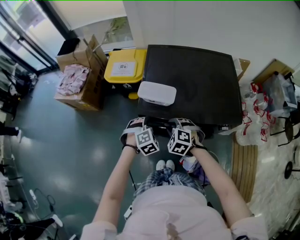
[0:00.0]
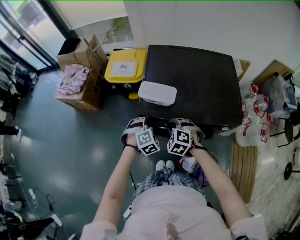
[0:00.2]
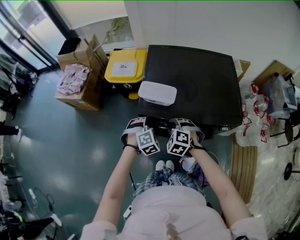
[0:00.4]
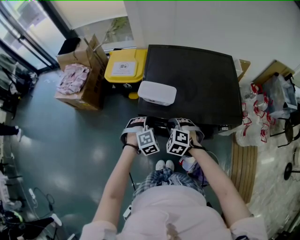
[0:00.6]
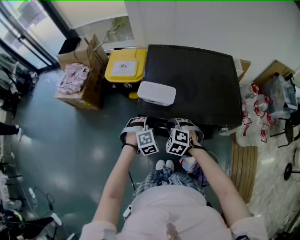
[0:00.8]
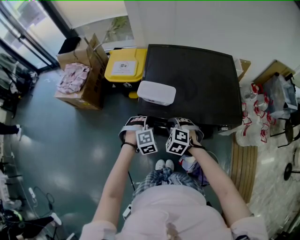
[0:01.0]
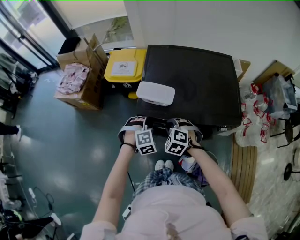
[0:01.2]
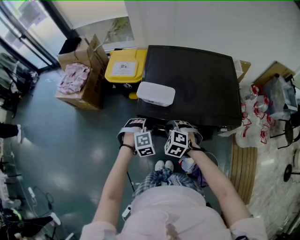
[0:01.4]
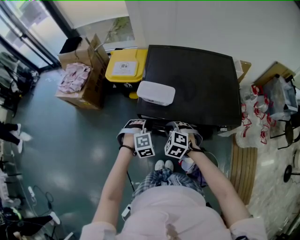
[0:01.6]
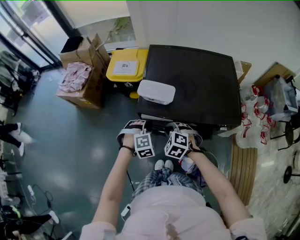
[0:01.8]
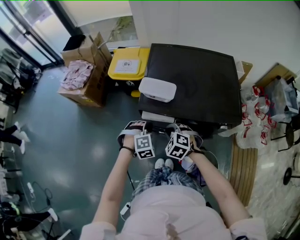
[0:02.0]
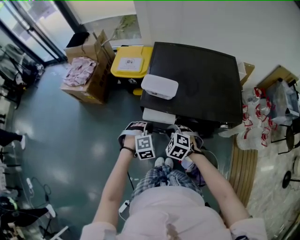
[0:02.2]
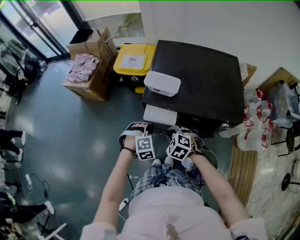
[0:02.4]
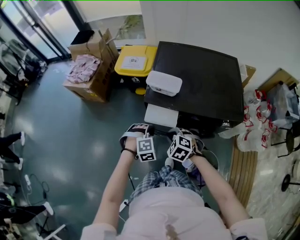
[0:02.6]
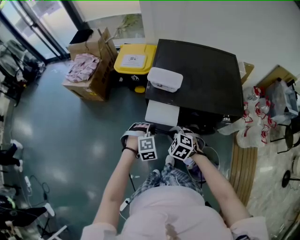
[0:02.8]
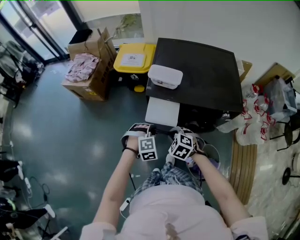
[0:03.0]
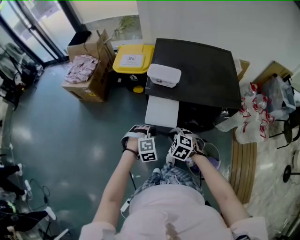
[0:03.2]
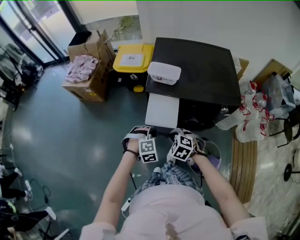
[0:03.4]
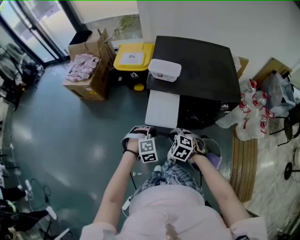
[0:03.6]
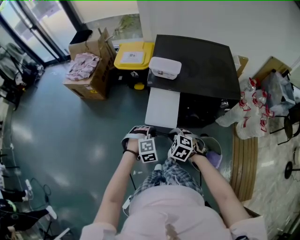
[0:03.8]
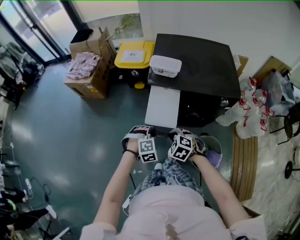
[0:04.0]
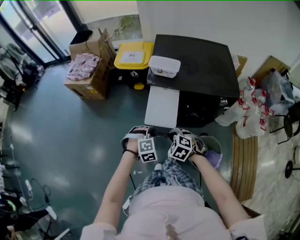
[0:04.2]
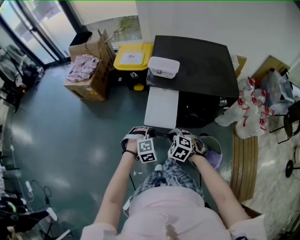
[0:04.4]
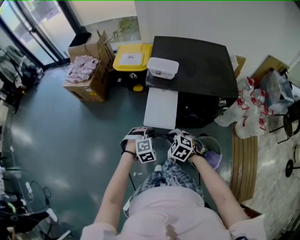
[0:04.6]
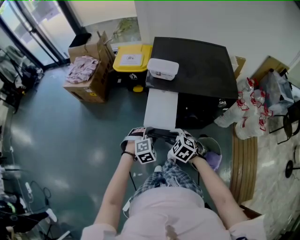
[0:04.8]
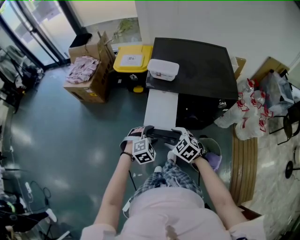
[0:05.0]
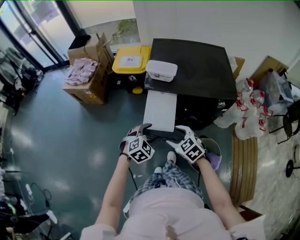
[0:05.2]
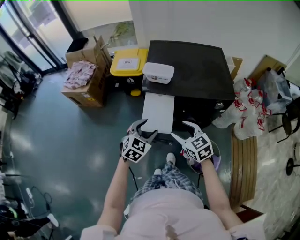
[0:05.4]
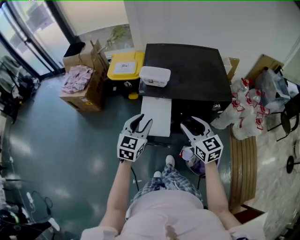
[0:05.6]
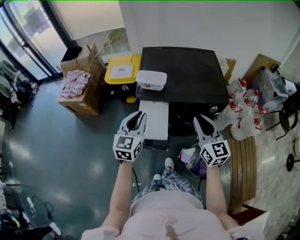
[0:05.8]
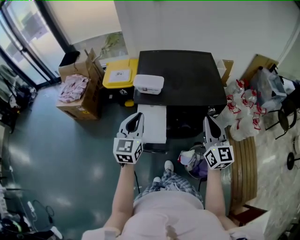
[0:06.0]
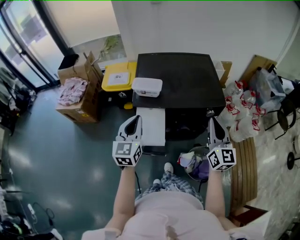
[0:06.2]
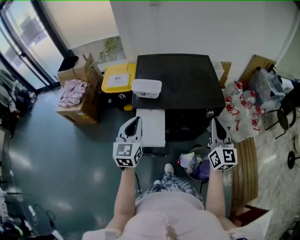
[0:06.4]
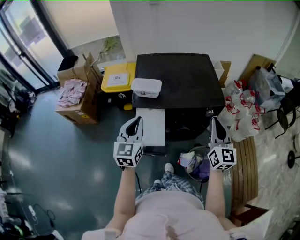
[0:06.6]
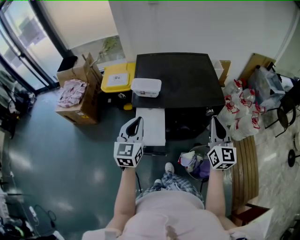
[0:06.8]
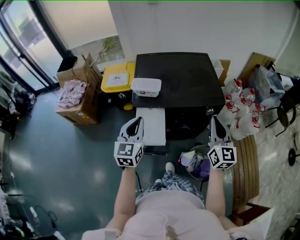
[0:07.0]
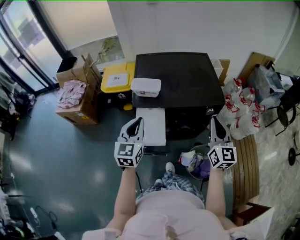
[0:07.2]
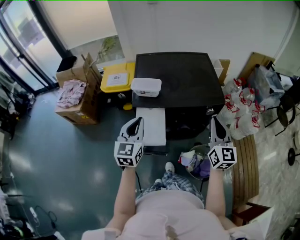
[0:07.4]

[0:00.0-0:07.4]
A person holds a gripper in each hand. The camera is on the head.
0:00.0 to 0:01.4: The grippers move only a little.
0:01.4 to 0:03.0: Both grippers move backward and to the left, approximately 15 cm.
0:03.0 to 0:04.4: The grippers both shift backward by some 10 cm.
0:04.4 to 0:06.0: The left gripper moves upward and forward, some 25 cm, tips its fingers upward by some 50 degrees, and opens, then closes once more. The right gripper moves upward and to the right, roughly 35 cm, points its fingers approximately 60 degrees further upward, and opens, then closes again.
0:06.0 to 0:07.4: There are only small adjustments of the grippers.

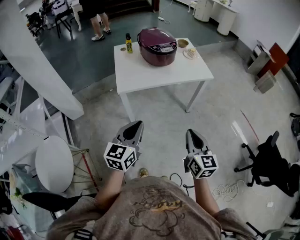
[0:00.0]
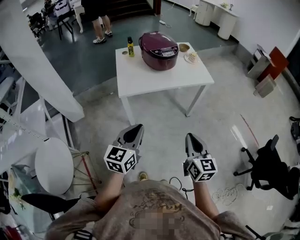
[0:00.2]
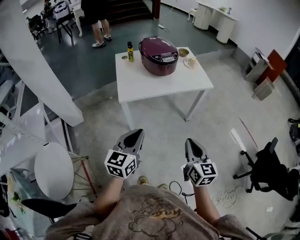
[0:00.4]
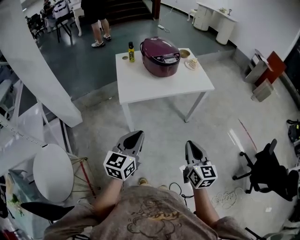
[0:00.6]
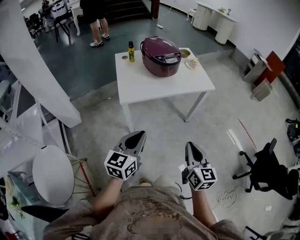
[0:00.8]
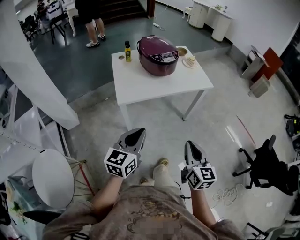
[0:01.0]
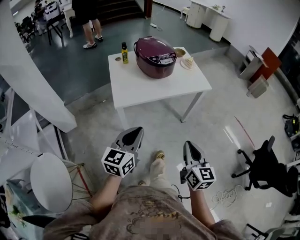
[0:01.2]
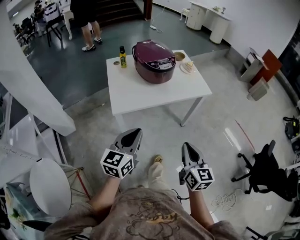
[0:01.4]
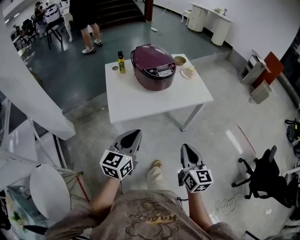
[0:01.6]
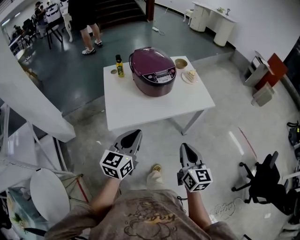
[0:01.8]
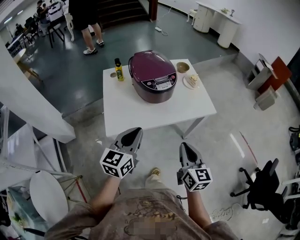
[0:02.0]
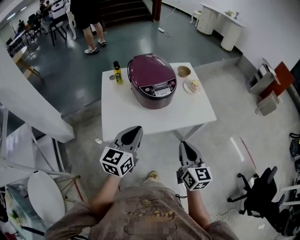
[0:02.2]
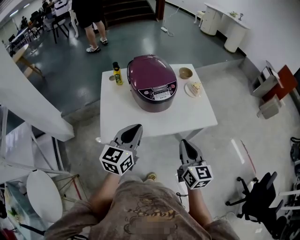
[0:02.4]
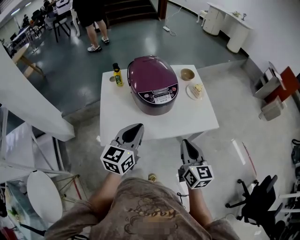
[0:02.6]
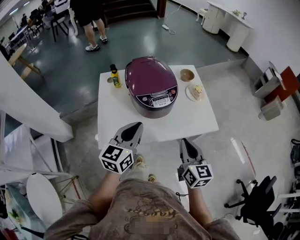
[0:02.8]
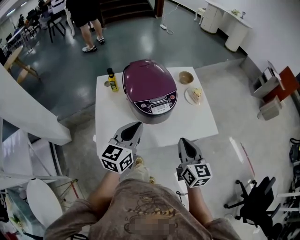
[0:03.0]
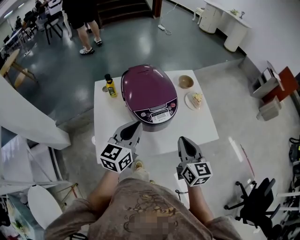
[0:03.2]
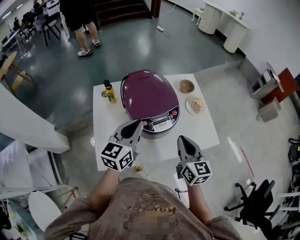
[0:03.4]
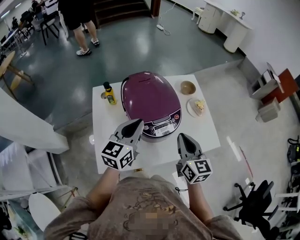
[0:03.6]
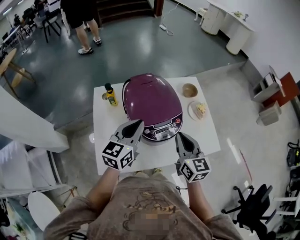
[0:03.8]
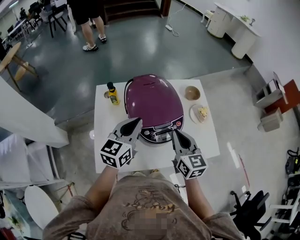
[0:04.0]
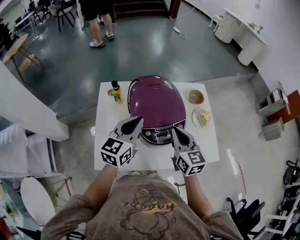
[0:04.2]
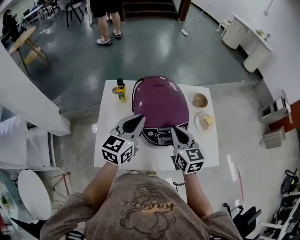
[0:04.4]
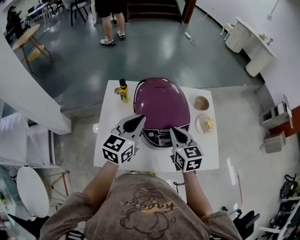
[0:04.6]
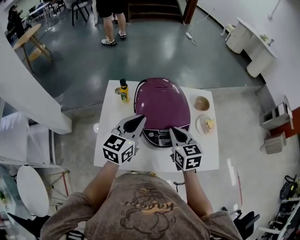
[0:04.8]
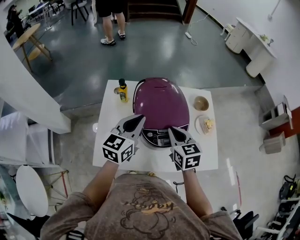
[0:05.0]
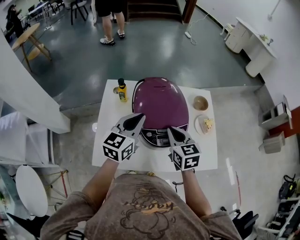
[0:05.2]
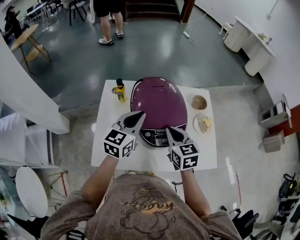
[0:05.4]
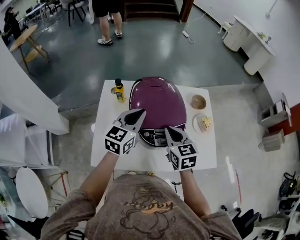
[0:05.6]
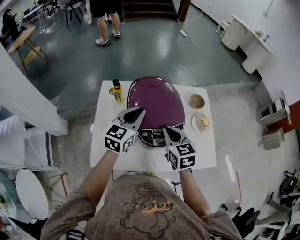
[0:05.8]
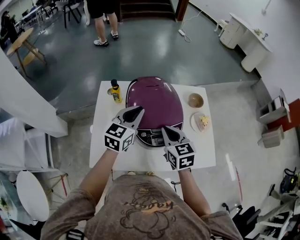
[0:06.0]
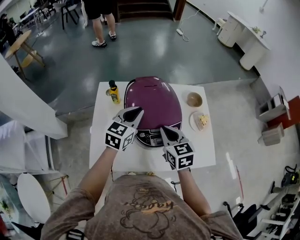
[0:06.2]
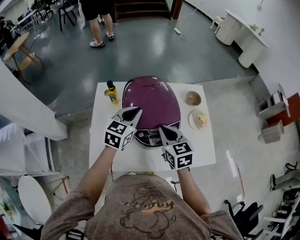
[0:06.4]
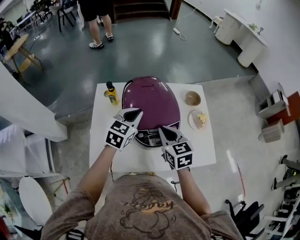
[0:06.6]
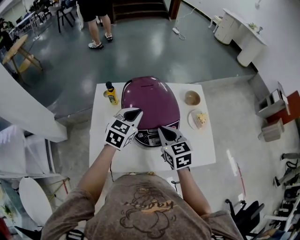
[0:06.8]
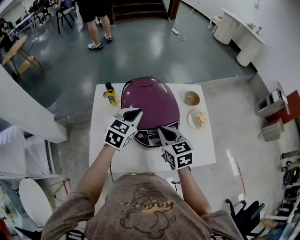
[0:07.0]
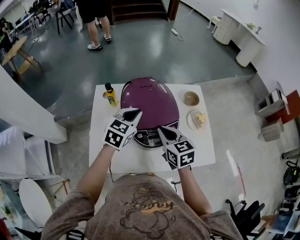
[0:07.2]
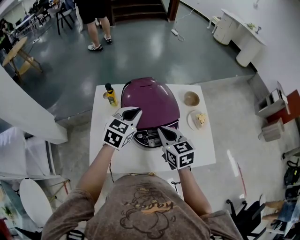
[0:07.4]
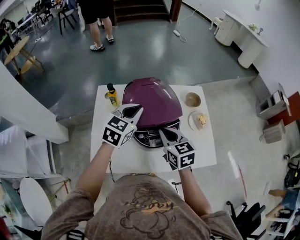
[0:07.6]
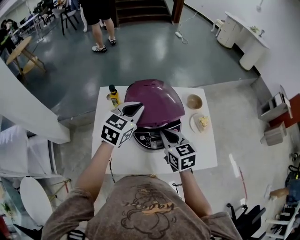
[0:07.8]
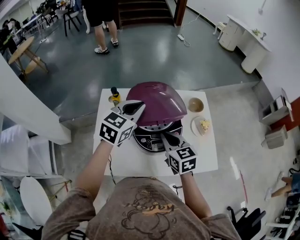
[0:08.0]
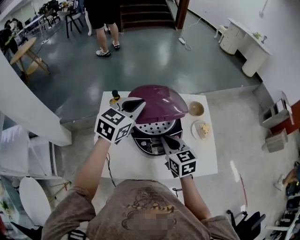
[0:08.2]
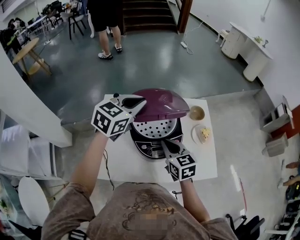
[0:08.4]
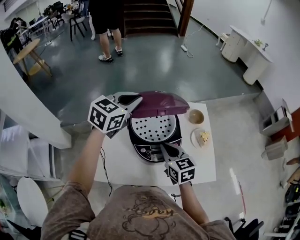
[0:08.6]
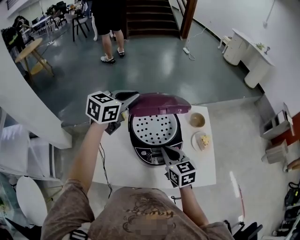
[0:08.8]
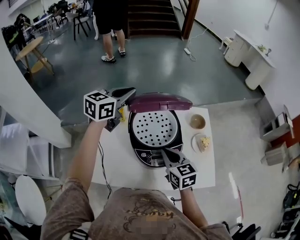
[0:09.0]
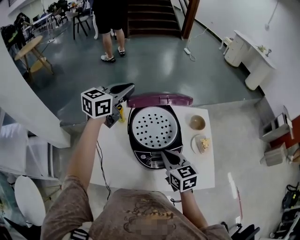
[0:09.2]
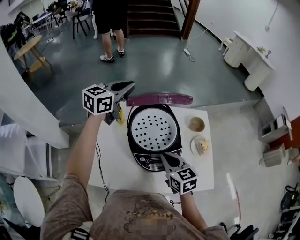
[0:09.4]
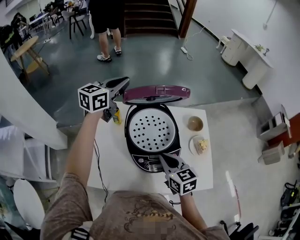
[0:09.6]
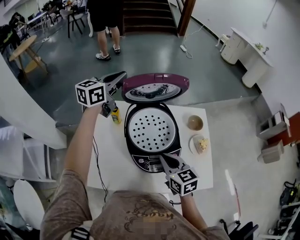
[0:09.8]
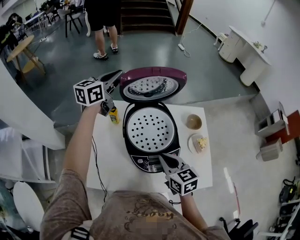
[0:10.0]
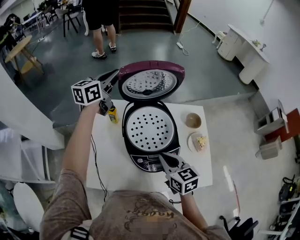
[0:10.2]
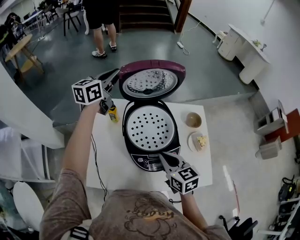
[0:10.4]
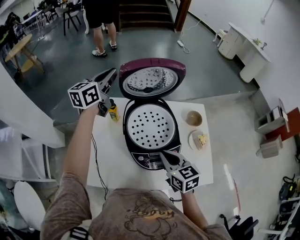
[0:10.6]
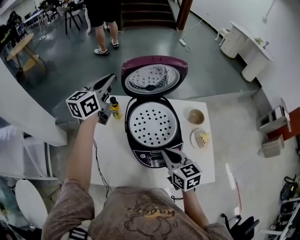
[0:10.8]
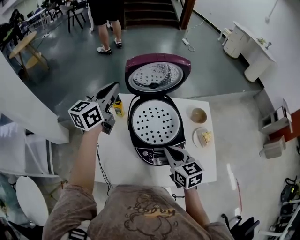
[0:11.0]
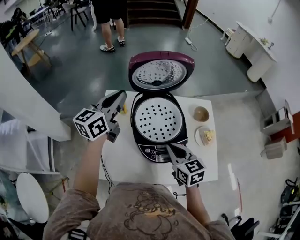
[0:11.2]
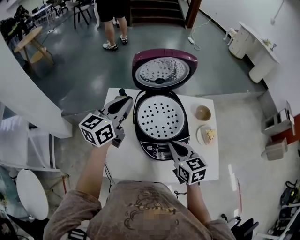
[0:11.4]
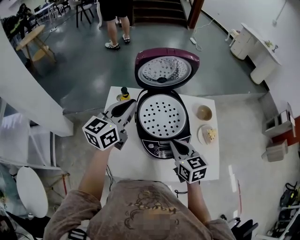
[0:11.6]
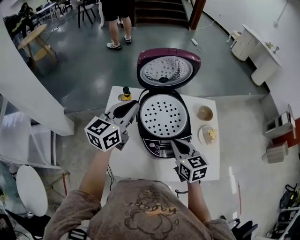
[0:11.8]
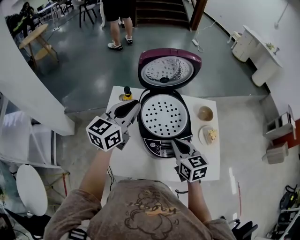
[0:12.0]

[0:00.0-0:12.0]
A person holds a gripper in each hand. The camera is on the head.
0:00.0 to 0:01.6: Both grippers travel together forward, about 15 cm.
0:01.6 to 0:03.0: The two grippers go roughly 30 cm forward.
0:03.0 to 0:04.4: The left gripper goes about 15 cm forward, while the right gripper moves forward and to the left, roughly 20 cm.
0:04.4 to 0:06.0: The left gripper moves roughly 5 cm.
0:06.0 to 0:07.6: The grippers make only small movements.
0:07.6 to 0:09.0: The left gripper is displaced upward, forward and to the left by roughly 15 cm.
0:09.0 to 0:10.4: The left gripper goes roughly 10 cm forward and to the left.
0:10.4 to 0:12.0: The left gripper heads backward, covering some 20 cm.

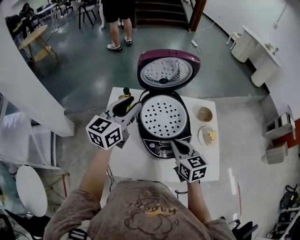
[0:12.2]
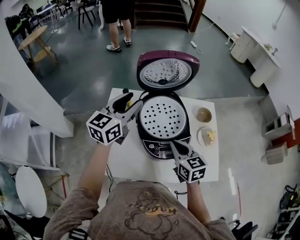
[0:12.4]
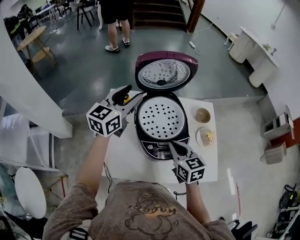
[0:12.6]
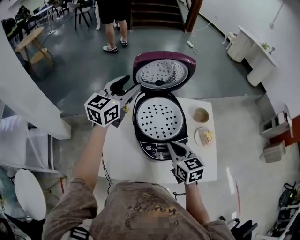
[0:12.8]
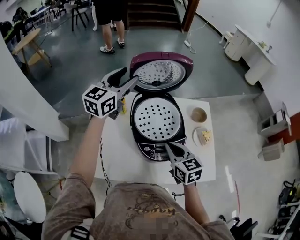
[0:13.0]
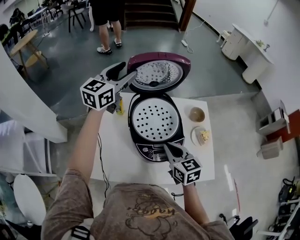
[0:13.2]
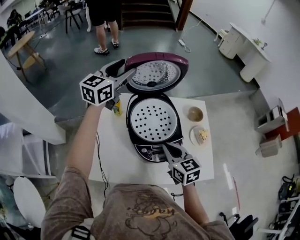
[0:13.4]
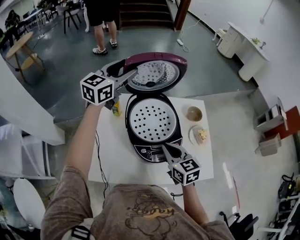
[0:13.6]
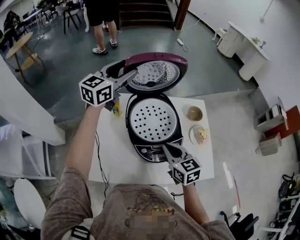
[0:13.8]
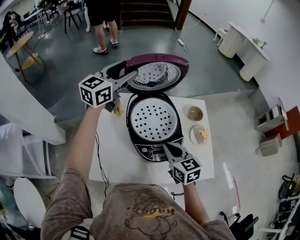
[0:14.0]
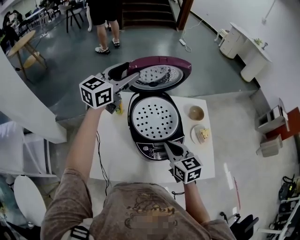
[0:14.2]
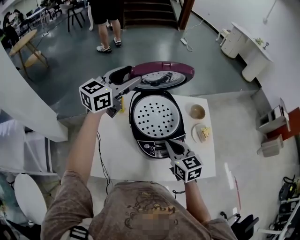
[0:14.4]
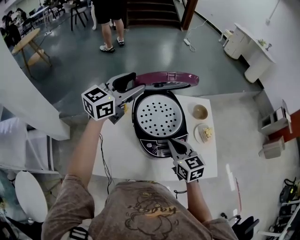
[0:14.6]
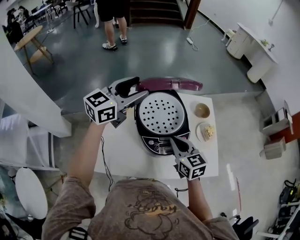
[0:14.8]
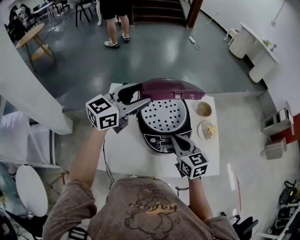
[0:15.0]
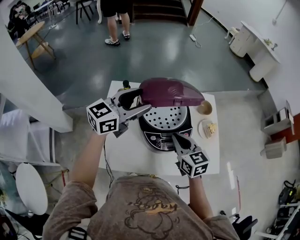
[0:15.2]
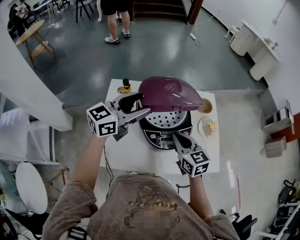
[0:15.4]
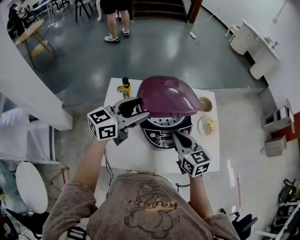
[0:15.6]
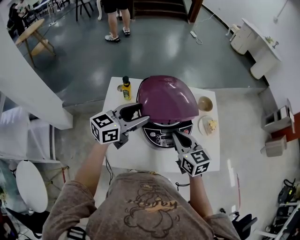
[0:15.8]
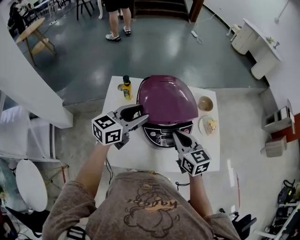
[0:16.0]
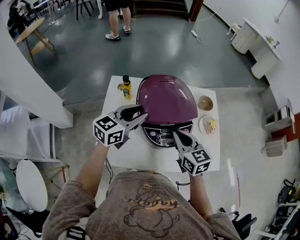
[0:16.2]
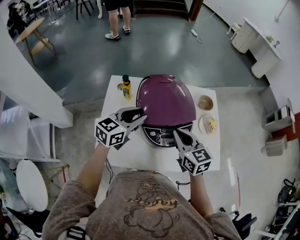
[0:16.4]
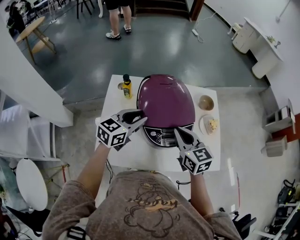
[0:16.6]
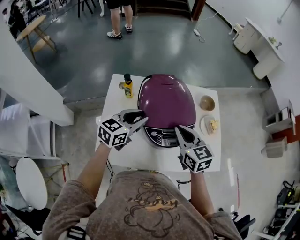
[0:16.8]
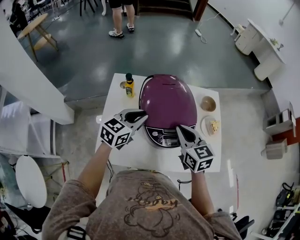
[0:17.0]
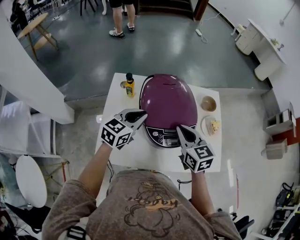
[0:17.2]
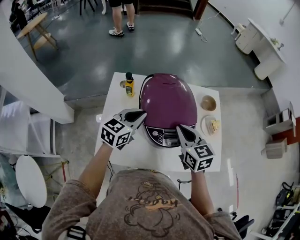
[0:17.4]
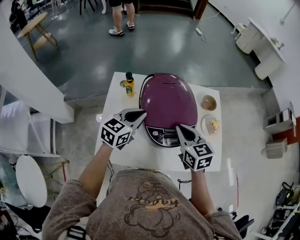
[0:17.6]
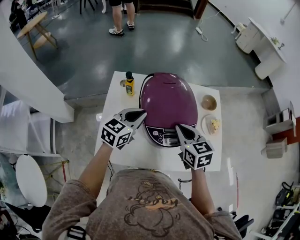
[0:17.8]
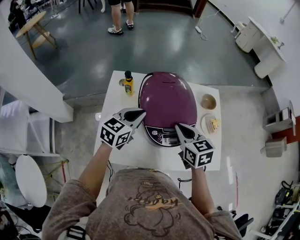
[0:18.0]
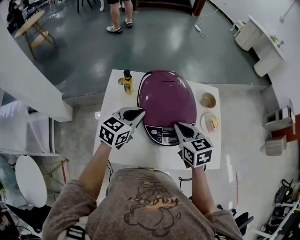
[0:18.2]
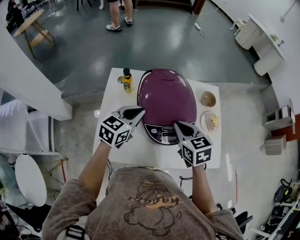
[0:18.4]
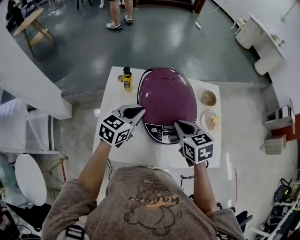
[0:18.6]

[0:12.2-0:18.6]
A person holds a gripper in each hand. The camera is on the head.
0:12.2 to 0:13.8: The left gripper goes roughly 15 cm forward and upward, and opens its fingers.
0:13.8 to 0:15.4: The left gripper travels backward and downward by about 20 cm.
0:15.4 to 0:17.0: The left gripper shifts approximately 10 cm downward, turns by approximately 20 degrees, and closes its fingers.
0:17.0 to 0:18.6: There are only small adjustments of the grippers.
